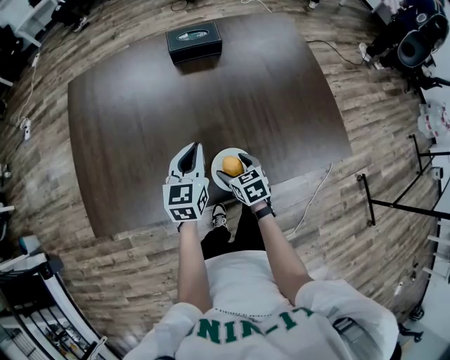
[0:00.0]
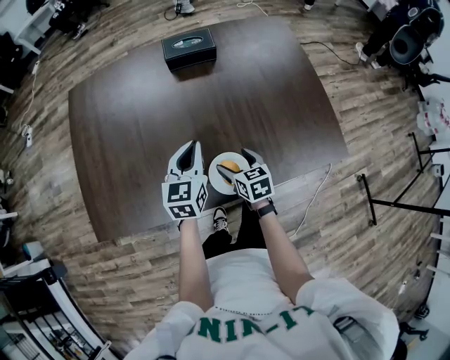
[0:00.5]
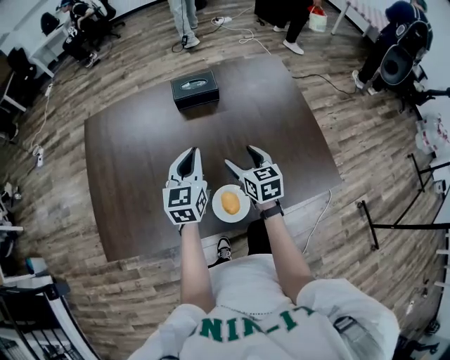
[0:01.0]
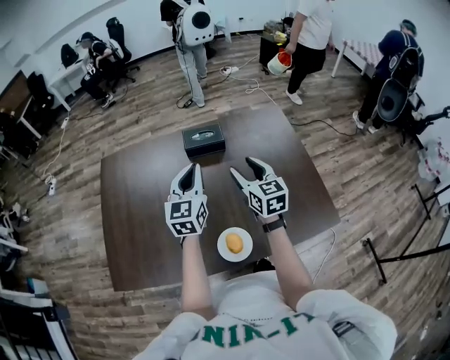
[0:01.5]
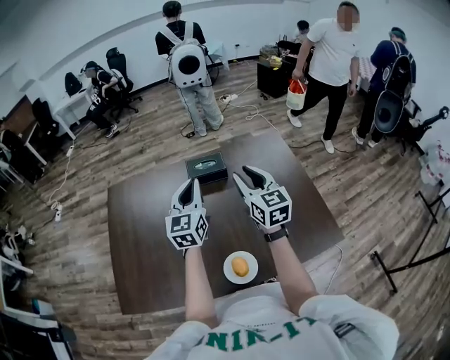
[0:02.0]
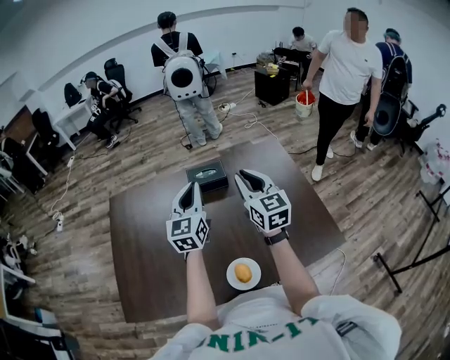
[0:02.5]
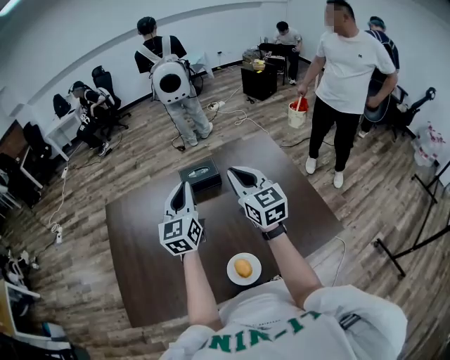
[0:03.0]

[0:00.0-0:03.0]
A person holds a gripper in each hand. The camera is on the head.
0:00.0 to 0:01.5: Both grippers travel together upward and forward, roughly 30 cm. The right gripper tilts its fingers roughly 30 degrees upward.
0:01.5 to 0:03.0: The right gripper shifts roughly 10 cm upward, and closes; the left gripper heads upward, covering roughly 5 cm.

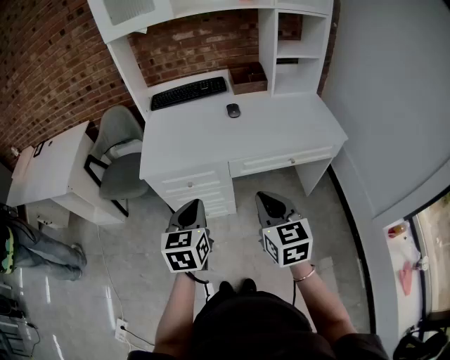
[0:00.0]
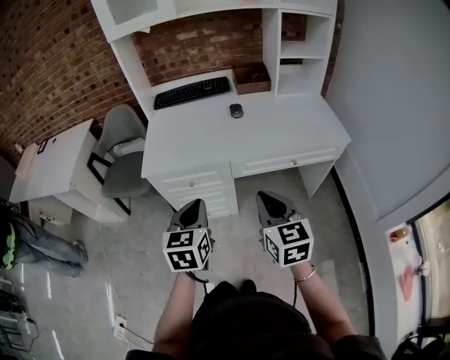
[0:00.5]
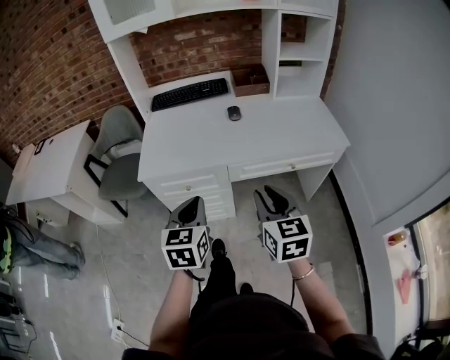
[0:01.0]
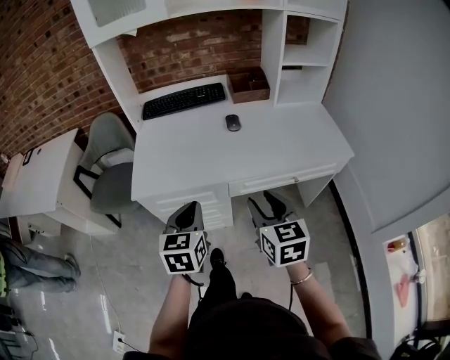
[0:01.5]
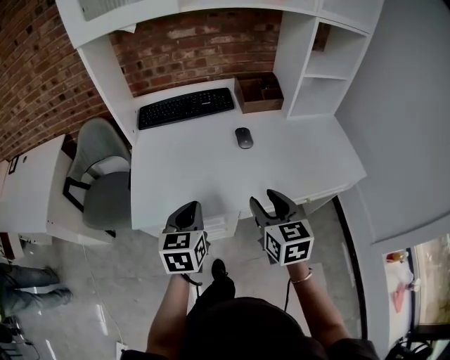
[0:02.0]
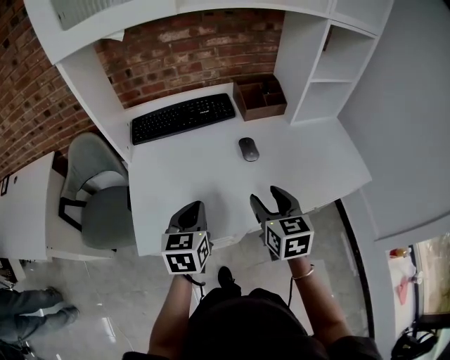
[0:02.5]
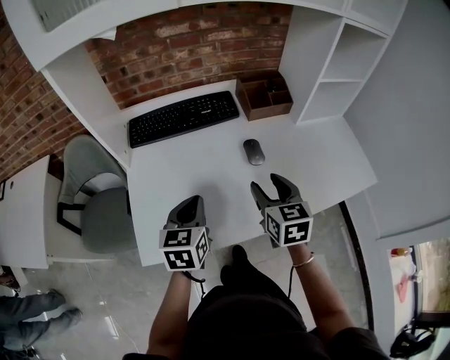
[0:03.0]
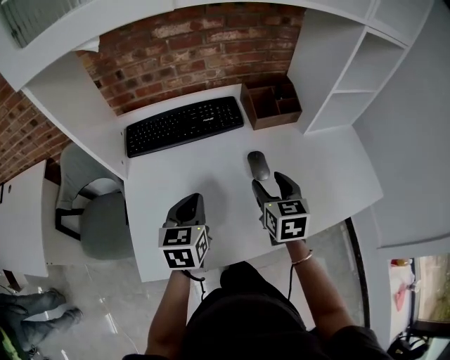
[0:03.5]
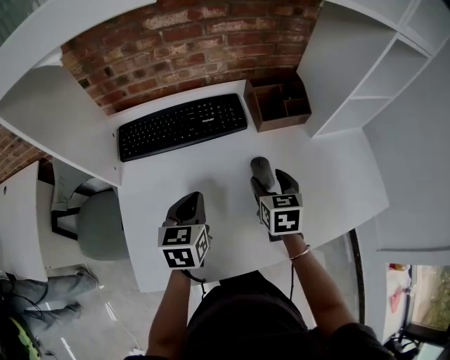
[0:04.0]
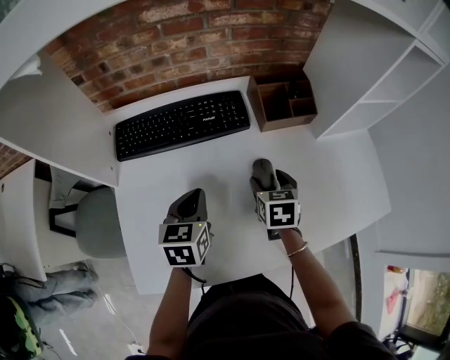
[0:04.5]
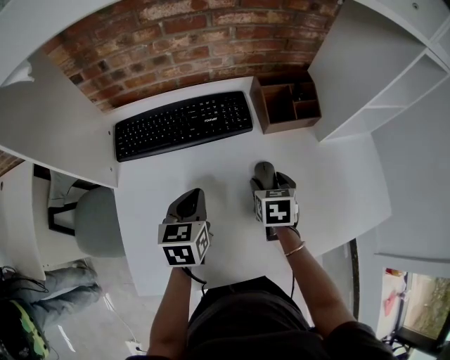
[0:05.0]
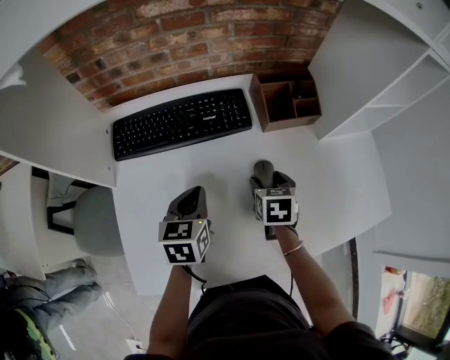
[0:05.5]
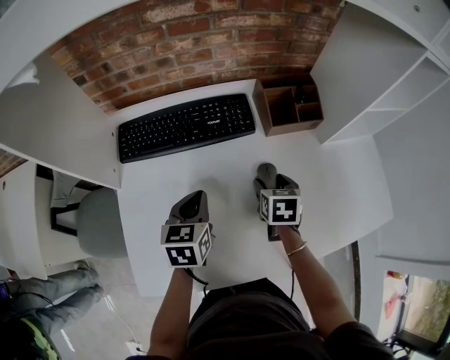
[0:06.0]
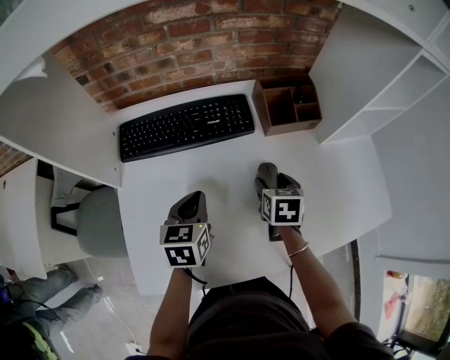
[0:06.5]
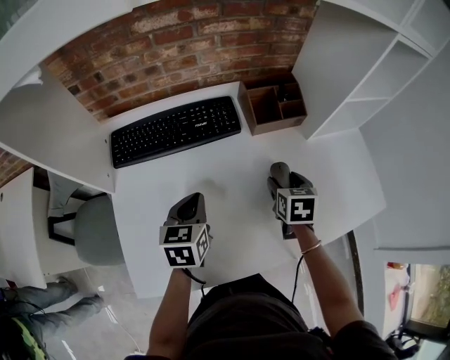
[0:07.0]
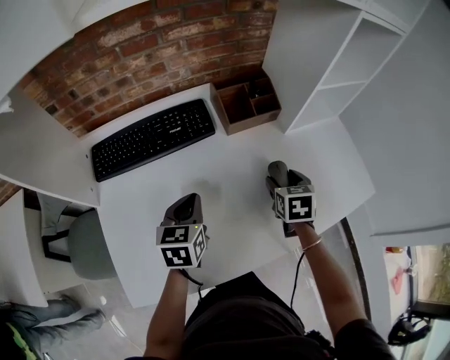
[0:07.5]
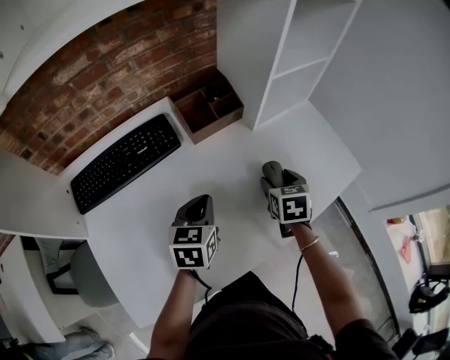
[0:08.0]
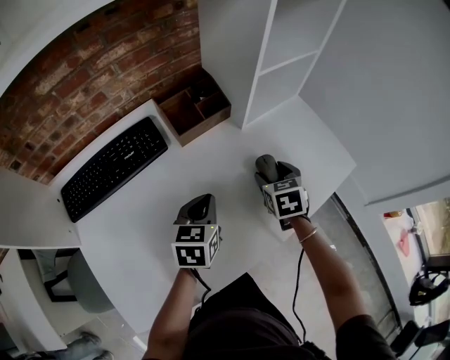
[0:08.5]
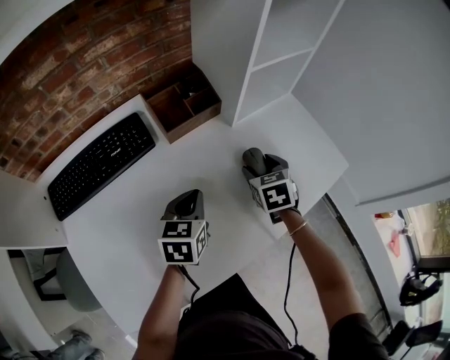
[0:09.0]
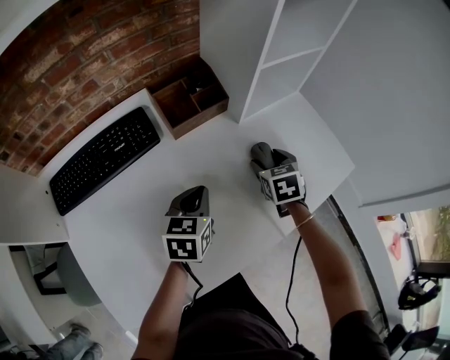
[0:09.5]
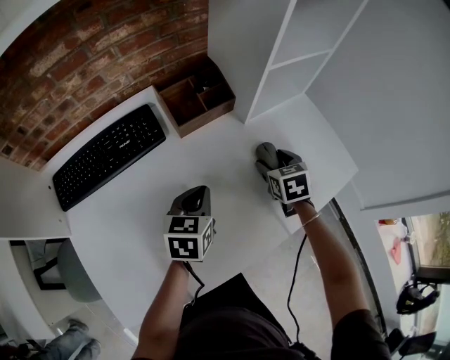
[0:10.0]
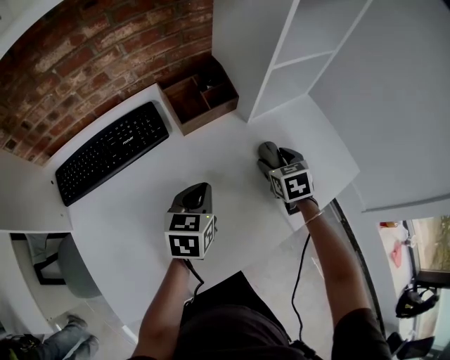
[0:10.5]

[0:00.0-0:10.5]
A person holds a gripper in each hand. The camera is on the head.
0:00.0 to 0:02.0: Both grippers move forward, roughly 25 cm. The right gripper opens its fingers.
0:02.0 to 0:04.0: Both grippers move forward, roughly 30 cm.
0:04.0 to 0:06.5: The right gripper shifts by some 5 cm.
0:06.5 to 0:08.5: The two grippers go some 20 cm to the right. The left gripper turns by about 30 degrees.
0:08.5 to 0:10.5: The grippers move only a little.

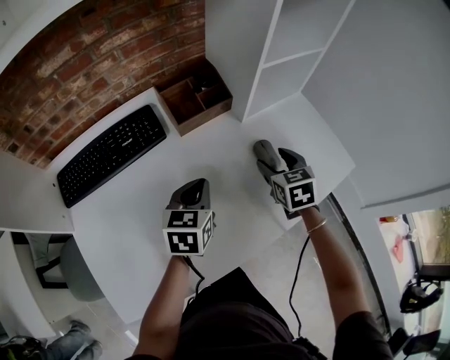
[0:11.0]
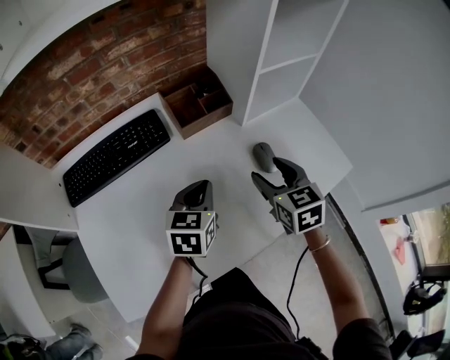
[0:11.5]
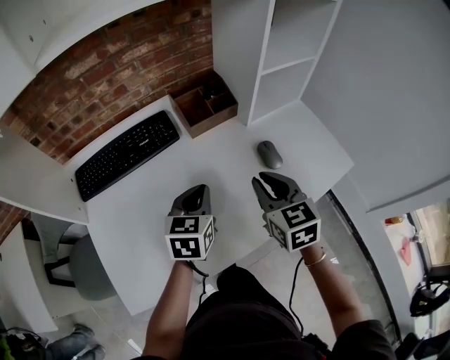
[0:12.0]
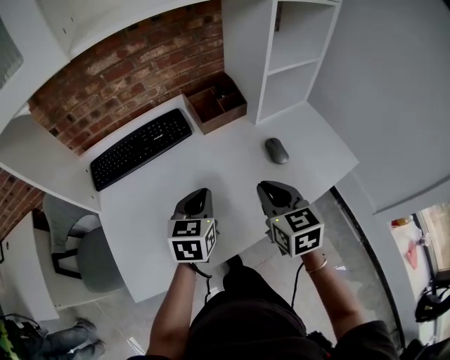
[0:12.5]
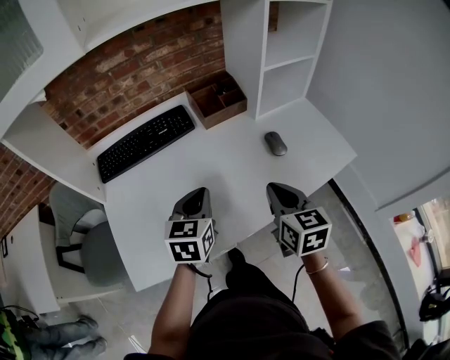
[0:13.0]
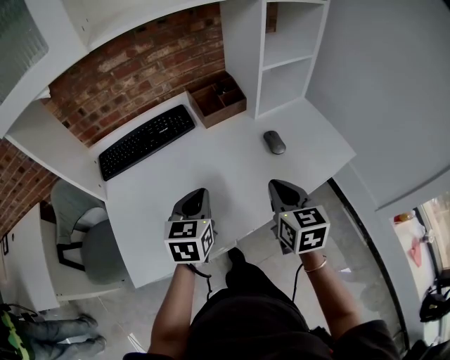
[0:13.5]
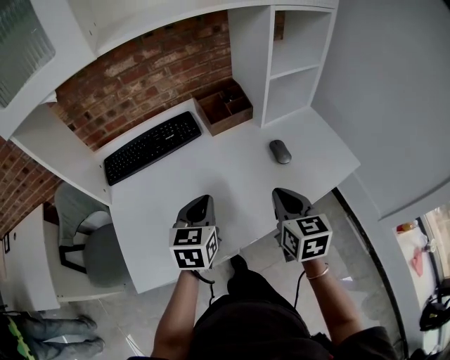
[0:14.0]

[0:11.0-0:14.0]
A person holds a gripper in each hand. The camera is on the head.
0:11.0 to 0:12.5: The right gripper is displaced backward, upward and to the left by approximately 20 cm, and closes up. The left gripper goes approximately 10 cm backward and upward.
0:12.5 to 0:14.0: The left gripper goes approximately 5 cm backward, while the right gripper ends up about 5 cm from where it was.

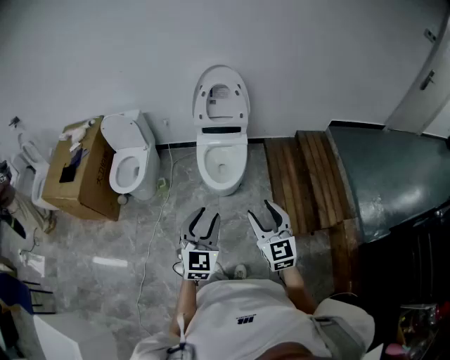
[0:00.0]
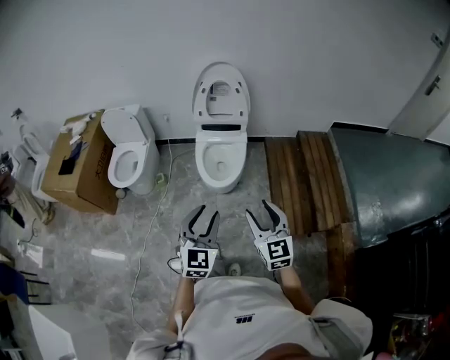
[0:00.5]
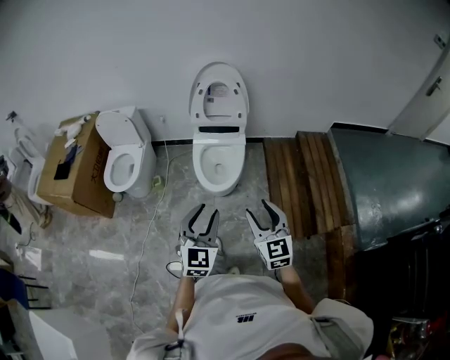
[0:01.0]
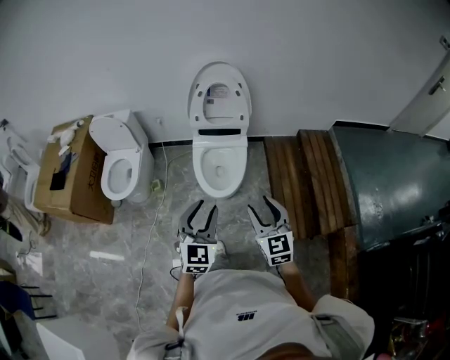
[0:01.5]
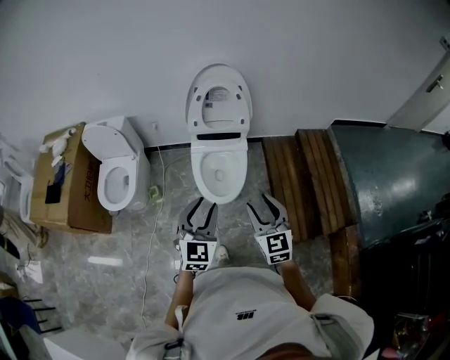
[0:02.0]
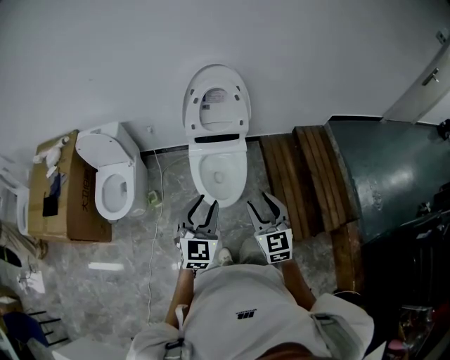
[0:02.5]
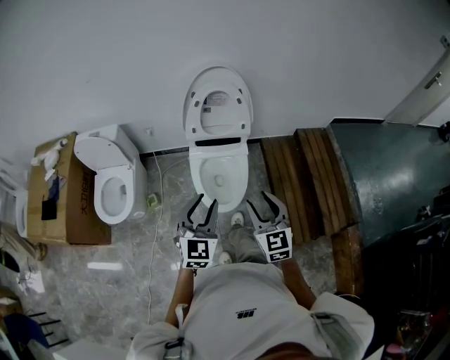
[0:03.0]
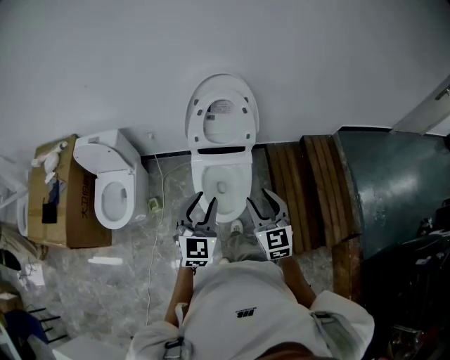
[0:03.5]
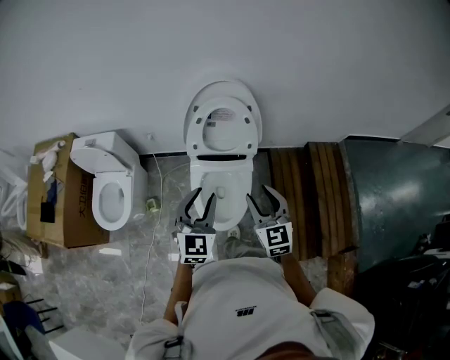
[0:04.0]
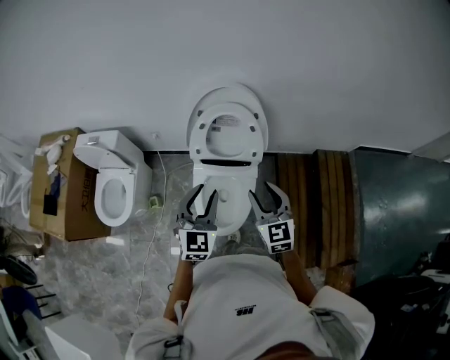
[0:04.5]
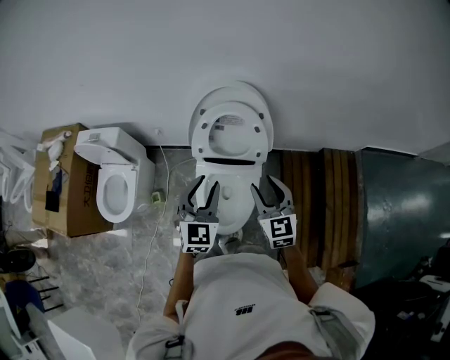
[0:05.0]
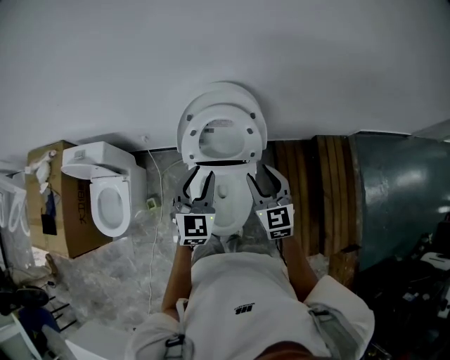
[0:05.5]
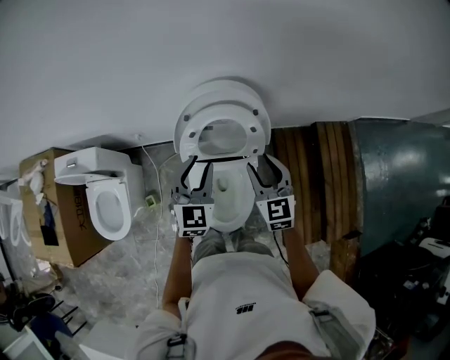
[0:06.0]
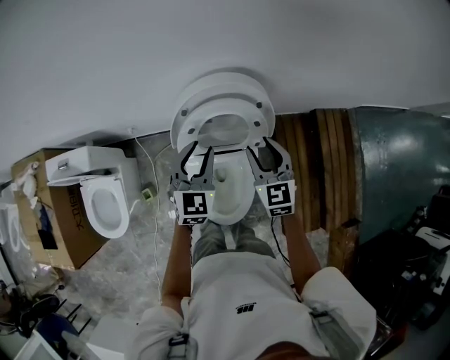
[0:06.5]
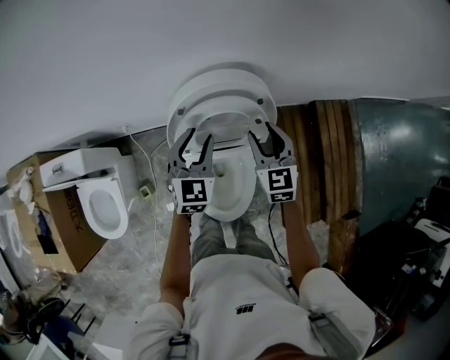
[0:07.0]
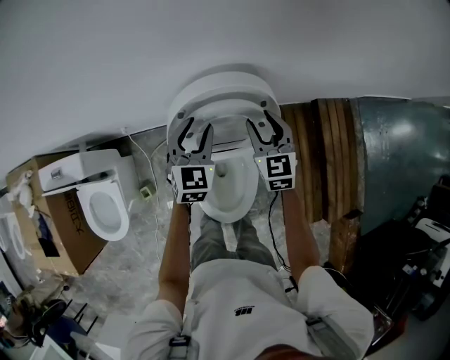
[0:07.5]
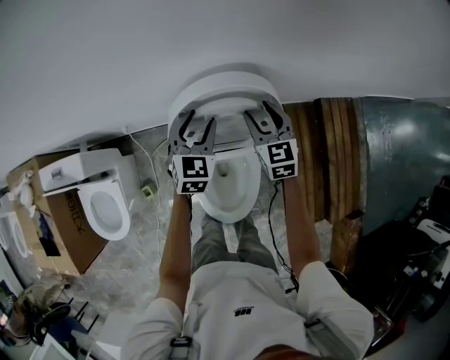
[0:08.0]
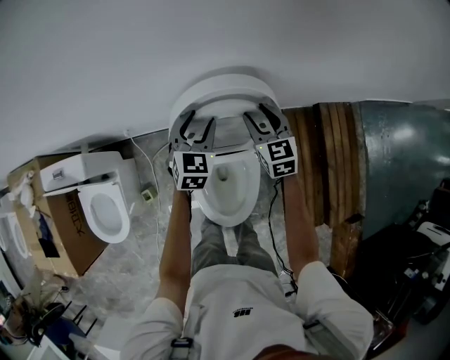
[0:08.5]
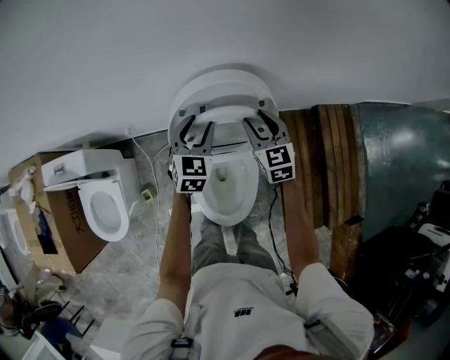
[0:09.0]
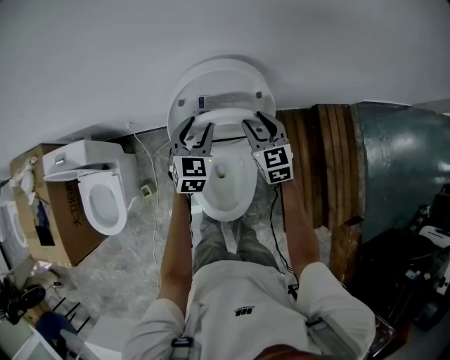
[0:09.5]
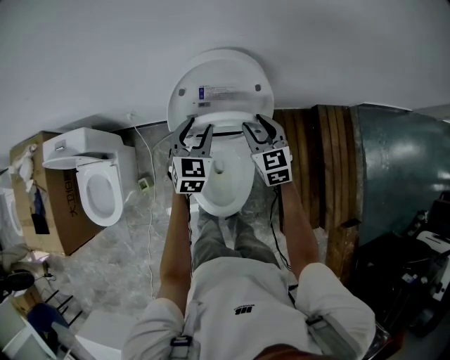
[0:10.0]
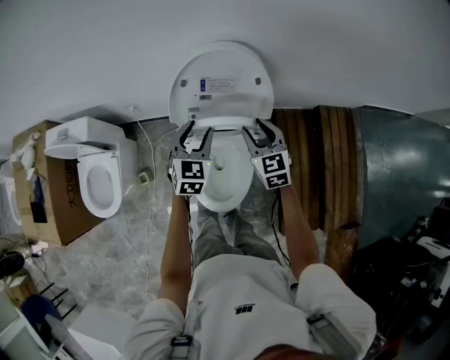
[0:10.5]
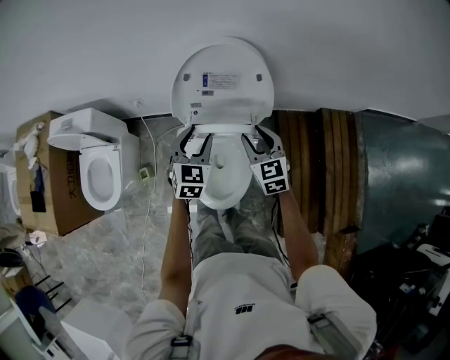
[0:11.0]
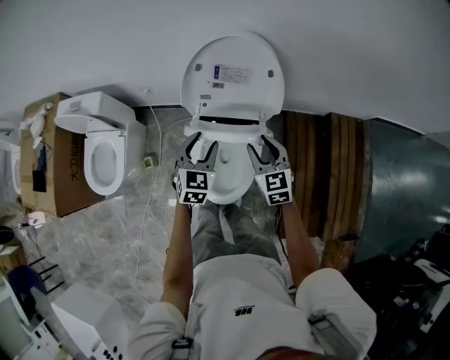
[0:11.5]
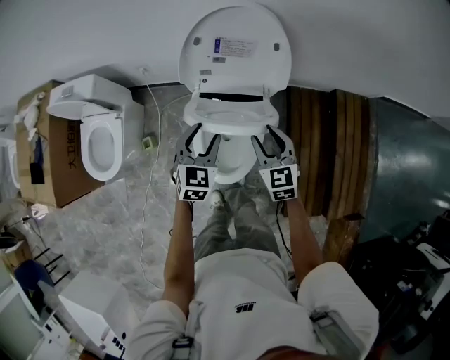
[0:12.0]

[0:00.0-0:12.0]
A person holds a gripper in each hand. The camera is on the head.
0:00.0 to 0:02.0: The grippers both shift forward by roughly 25 cm.
0:02.0 to 0:04.0: Both grippers move forward, approximately 30 cm.
0:04.0 to 0:06.0: The grippers both shift forward by roughly 30 cm.
0:06.0 to 0:08.0: The two grippers go roughly 20 cm forward and downward.
0:08.0 to 0:10.0: The two grippers go some 15 cm backward.
0:10.0 to 0:12.0: The two grippers go approximately 15 cm backward.
